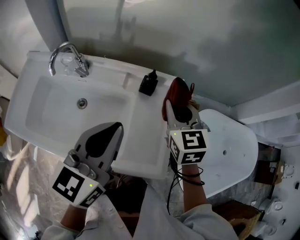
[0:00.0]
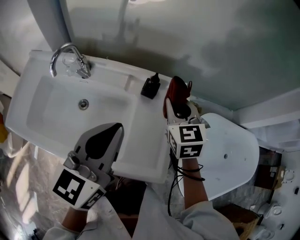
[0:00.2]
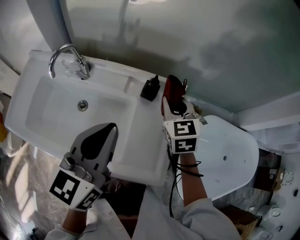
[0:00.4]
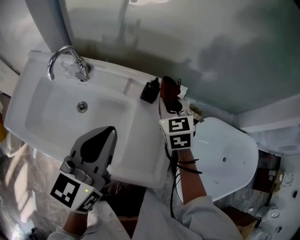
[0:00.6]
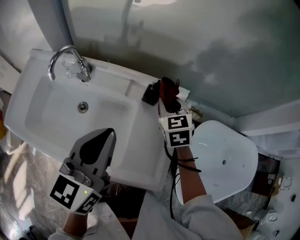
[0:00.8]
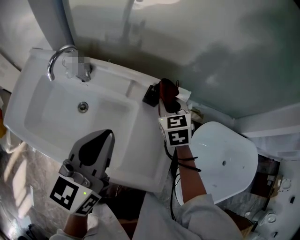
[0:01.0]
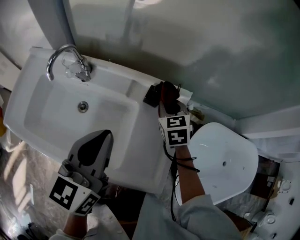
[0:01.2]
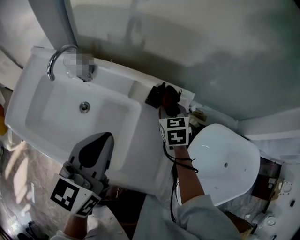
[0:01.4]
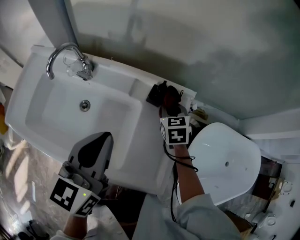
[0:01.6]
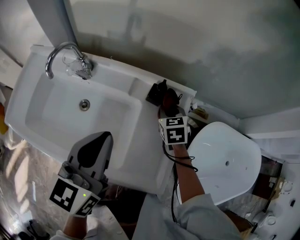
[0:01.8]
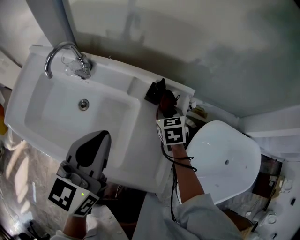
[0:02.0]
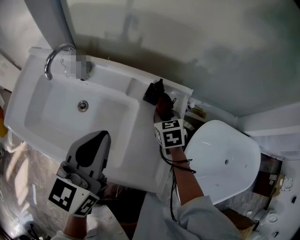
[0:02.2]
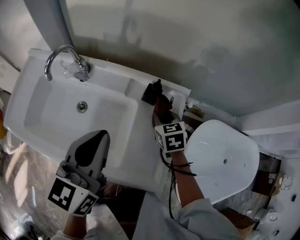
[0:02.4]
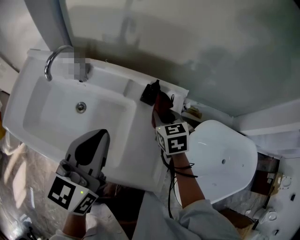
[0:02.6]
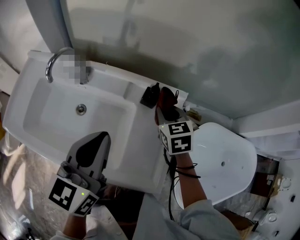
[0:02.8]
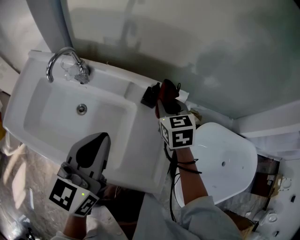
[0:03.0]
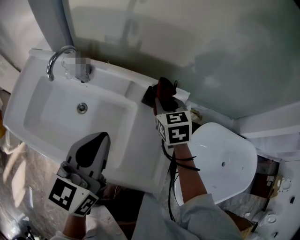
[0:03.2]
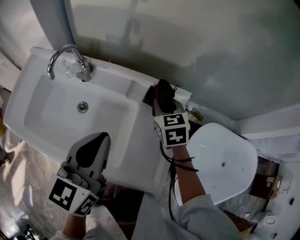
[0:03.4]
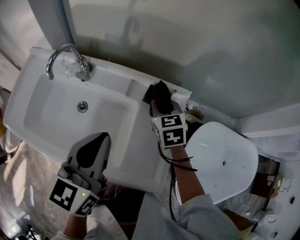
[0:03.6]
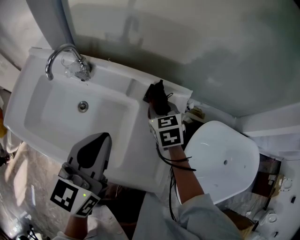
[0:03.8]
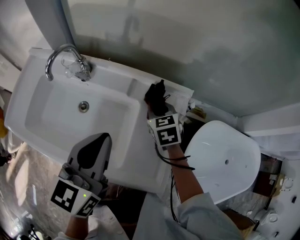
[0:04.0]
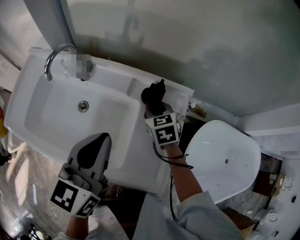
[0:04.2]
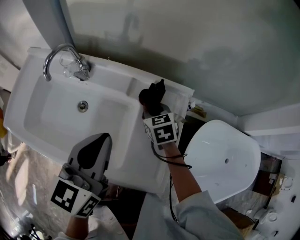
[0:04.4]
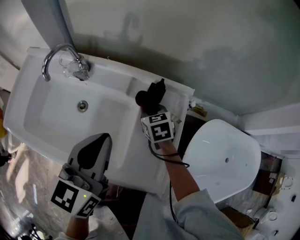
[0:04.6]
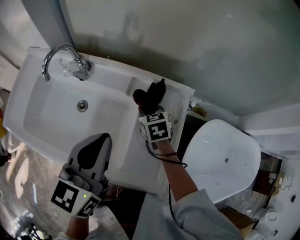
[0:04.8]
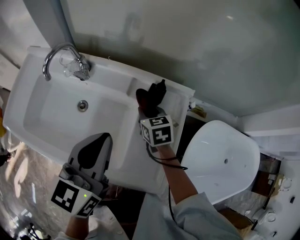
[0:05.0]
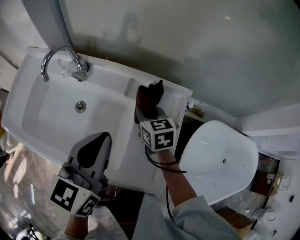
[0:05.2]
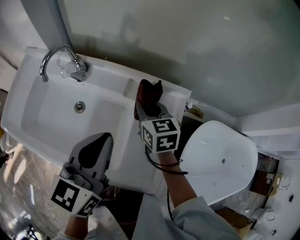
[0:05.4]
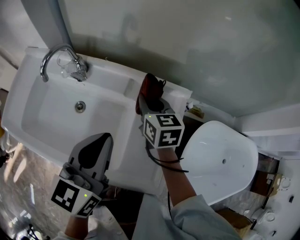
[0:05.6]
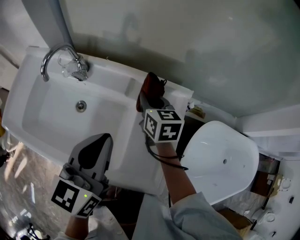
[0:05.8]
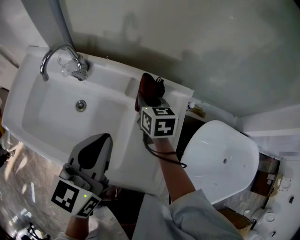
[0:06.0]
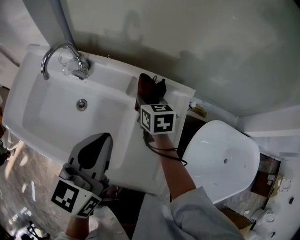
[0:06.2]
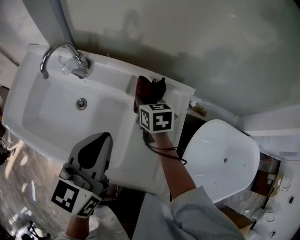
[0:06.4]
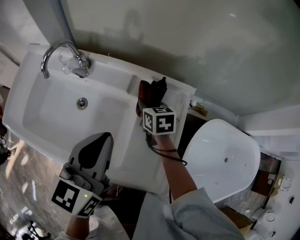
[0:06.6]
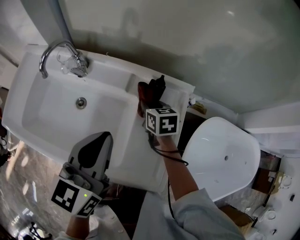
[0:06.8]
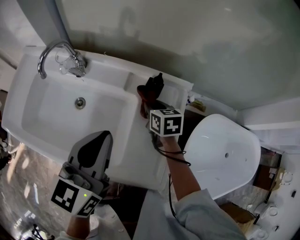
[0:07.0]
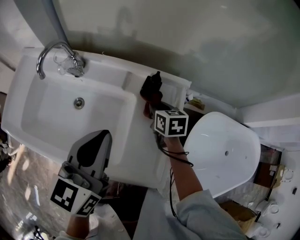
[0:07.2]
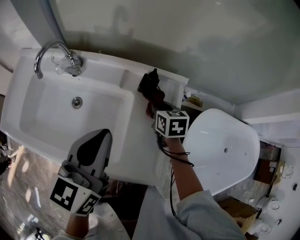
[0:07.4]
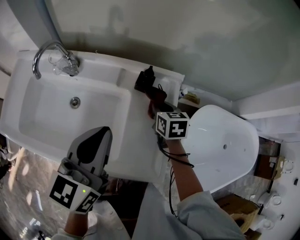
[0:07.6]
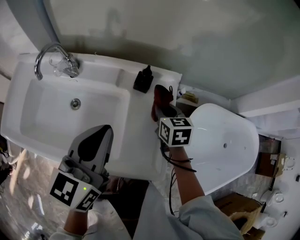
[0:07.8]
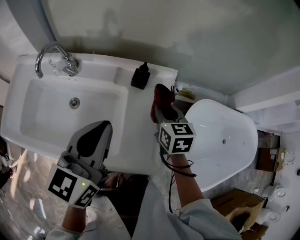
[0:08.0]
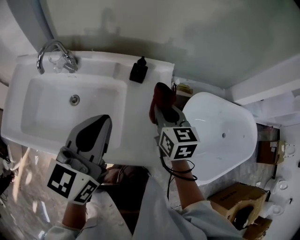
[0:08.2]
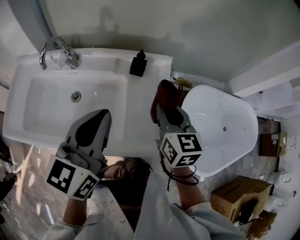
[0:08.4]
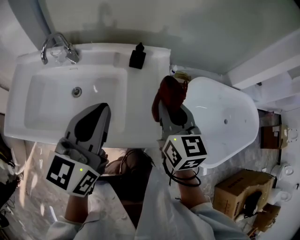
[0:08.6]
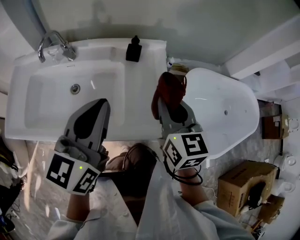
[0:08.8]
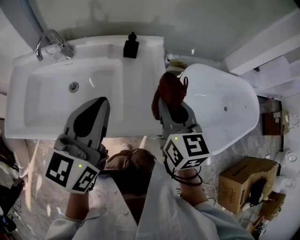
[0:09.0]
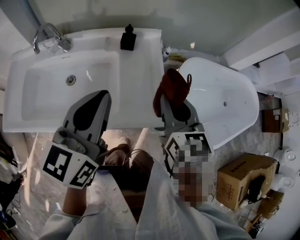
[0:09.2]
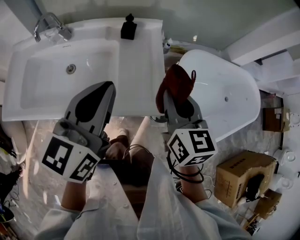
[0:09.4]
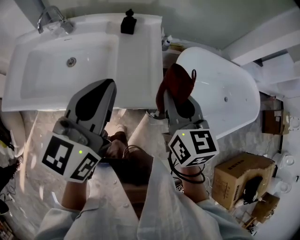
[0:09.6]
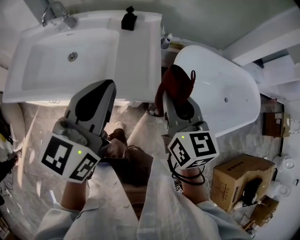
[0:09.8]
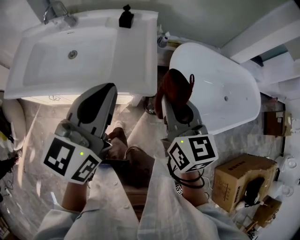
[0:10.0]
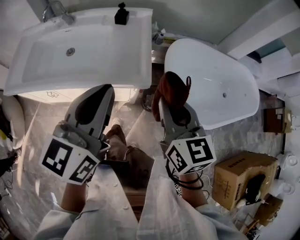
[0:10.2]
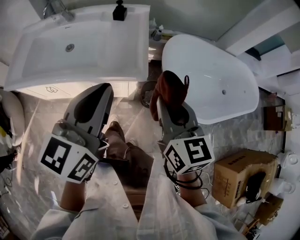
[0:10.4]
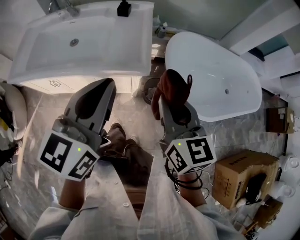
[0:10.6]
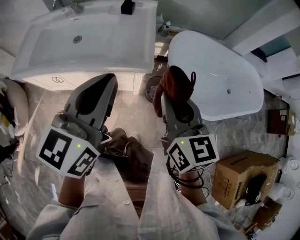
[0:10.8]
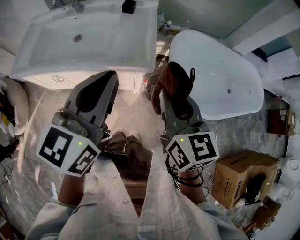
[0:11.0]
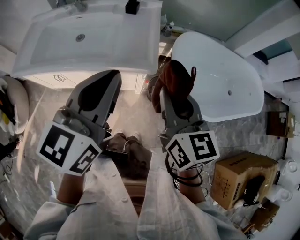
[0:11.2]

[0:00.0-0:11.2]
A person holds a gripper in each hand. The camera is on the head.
0:00.0 to 0:01.6: The left gripper moves approximately 5 cm; the right gripper travels downward and forward by roughly 20 cm.
0:01.6 to 0:03.2: The right gripper is displaced upward by some 10 cm.
0:03.2 to 0:04.8: The right gripper is displaced downward and to the left by approximately 15 cm.
0:04.8 to 0:06.4: The right gripper reaches about 10 cm upward, then returns.
0:06.4 to 0:08.0: The left gripper moves roughly 5 cm, while the right gripper shifts some 20 cm to the right, backward and upward.
0:08.0 to 0:09.6: The left gripper shifts approximately 20 cm backward and to the right, while the right gripper travels backward and upward by some 30 cm.
0:09.6 to 0:11.2: The left gripper moves backward and to the right, roughly 20 cm. The right gripper goes about 15 cm backward.

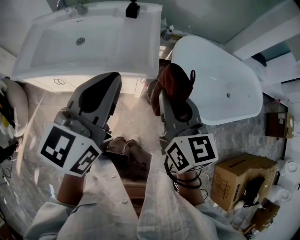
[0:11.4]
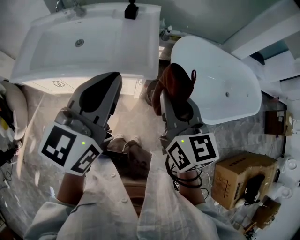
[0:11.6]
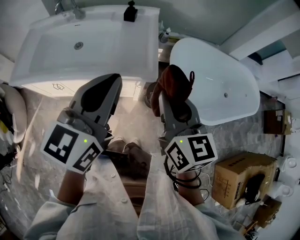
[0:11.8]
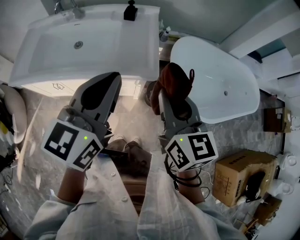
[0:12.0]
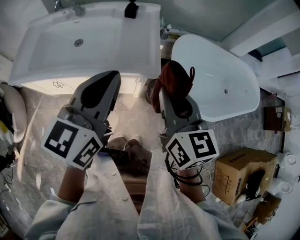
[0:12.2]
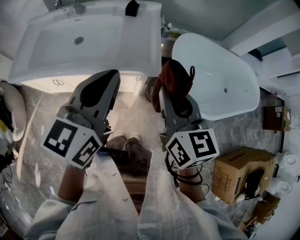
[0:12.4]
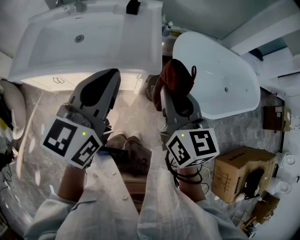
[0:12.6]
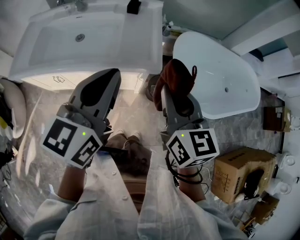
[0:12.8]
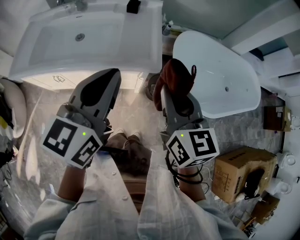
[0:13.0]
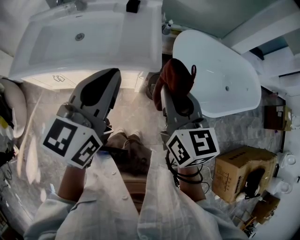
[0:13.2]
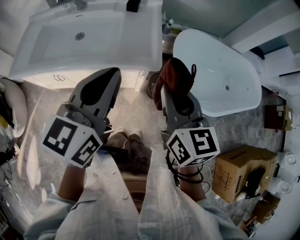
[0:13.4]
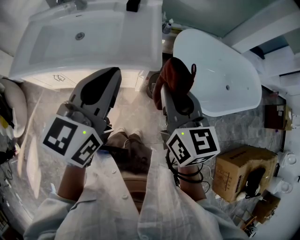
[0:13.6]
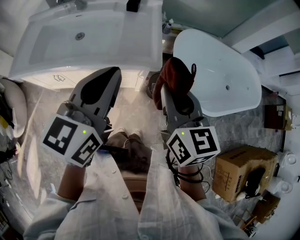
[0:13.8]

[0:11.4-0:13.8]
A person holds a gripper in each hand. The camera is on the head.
0:11.4 to 0:12.6: There are only small adjustments of the grippers.
0:12.6 to 0:13.8: Both grippers stay put.

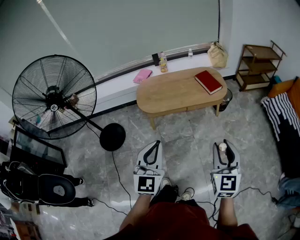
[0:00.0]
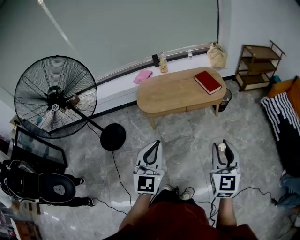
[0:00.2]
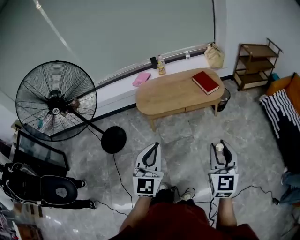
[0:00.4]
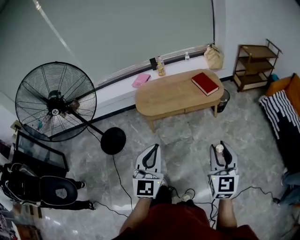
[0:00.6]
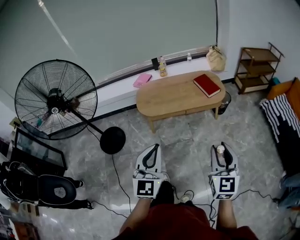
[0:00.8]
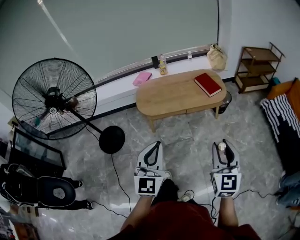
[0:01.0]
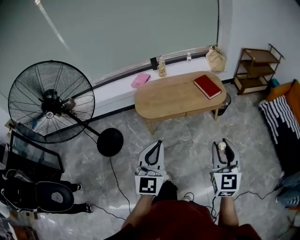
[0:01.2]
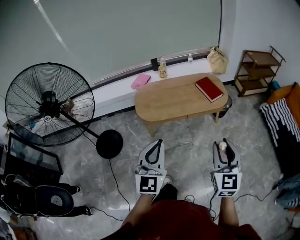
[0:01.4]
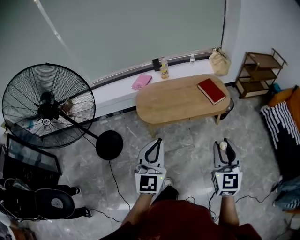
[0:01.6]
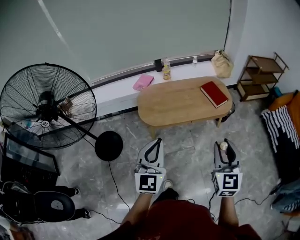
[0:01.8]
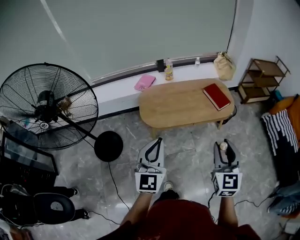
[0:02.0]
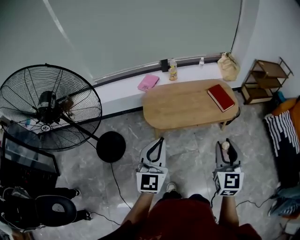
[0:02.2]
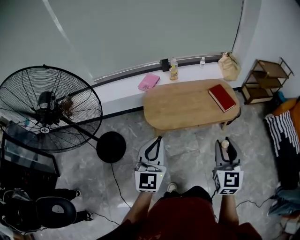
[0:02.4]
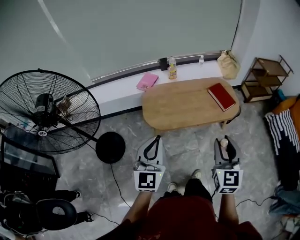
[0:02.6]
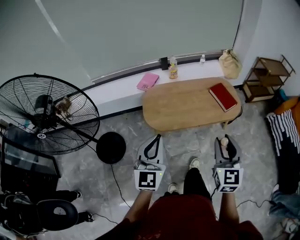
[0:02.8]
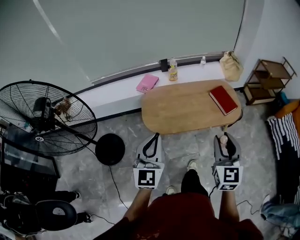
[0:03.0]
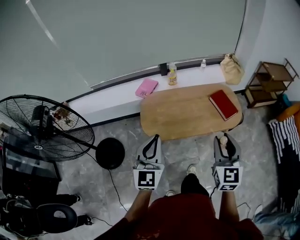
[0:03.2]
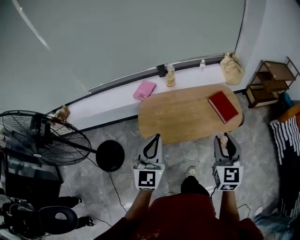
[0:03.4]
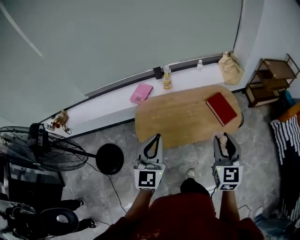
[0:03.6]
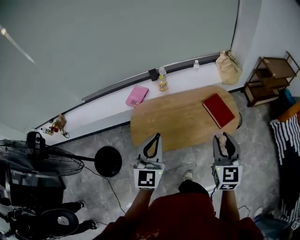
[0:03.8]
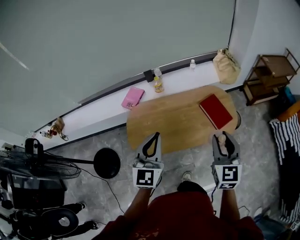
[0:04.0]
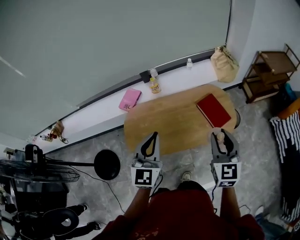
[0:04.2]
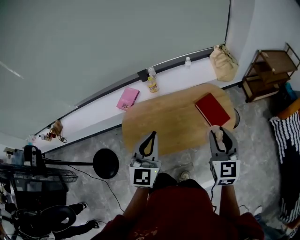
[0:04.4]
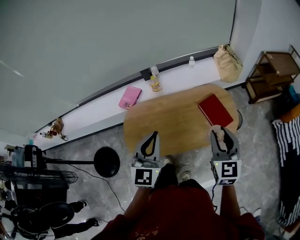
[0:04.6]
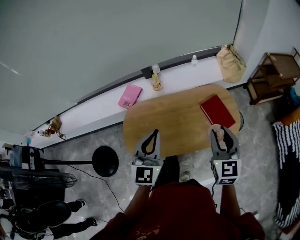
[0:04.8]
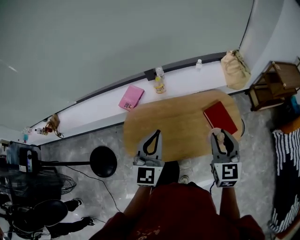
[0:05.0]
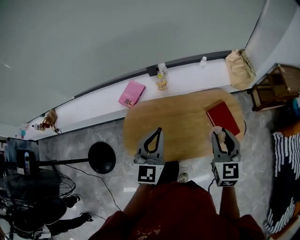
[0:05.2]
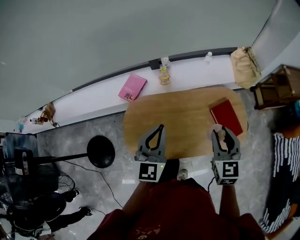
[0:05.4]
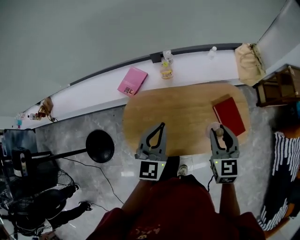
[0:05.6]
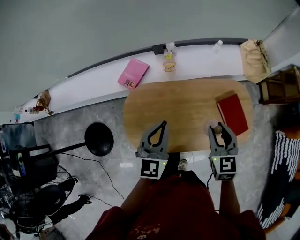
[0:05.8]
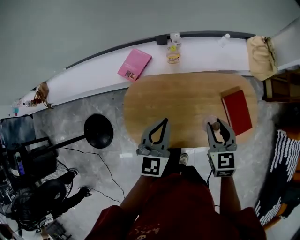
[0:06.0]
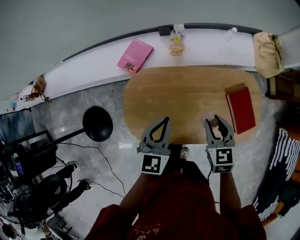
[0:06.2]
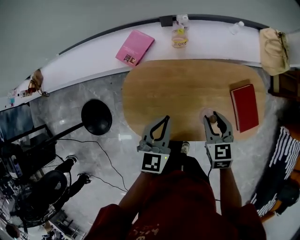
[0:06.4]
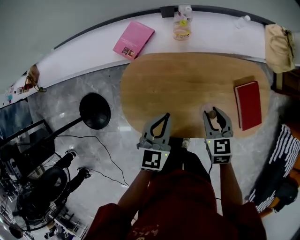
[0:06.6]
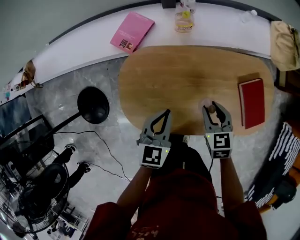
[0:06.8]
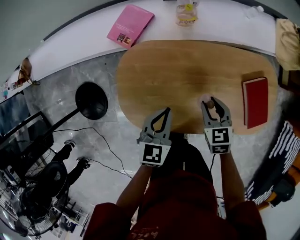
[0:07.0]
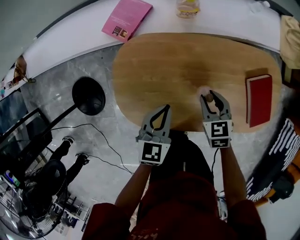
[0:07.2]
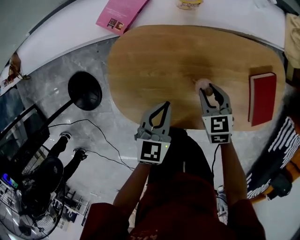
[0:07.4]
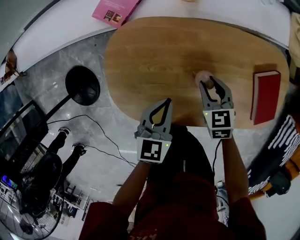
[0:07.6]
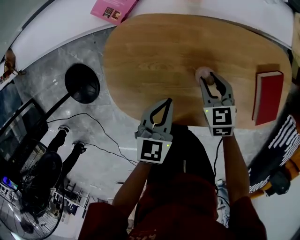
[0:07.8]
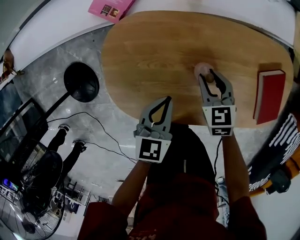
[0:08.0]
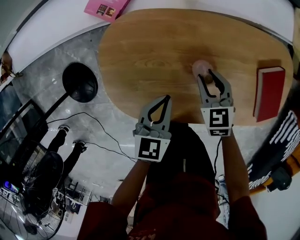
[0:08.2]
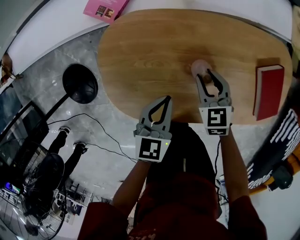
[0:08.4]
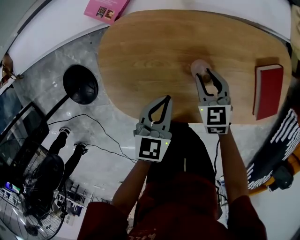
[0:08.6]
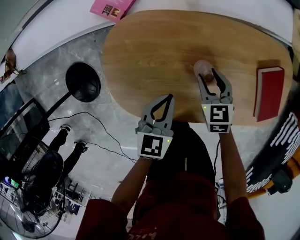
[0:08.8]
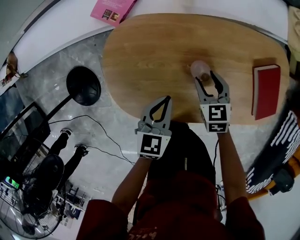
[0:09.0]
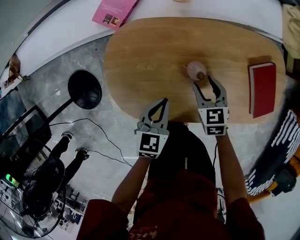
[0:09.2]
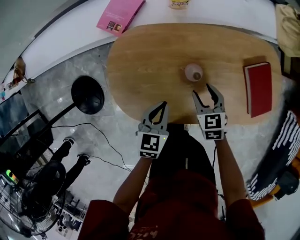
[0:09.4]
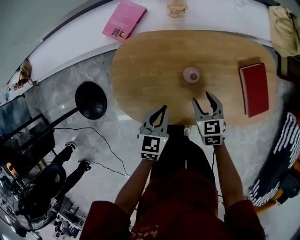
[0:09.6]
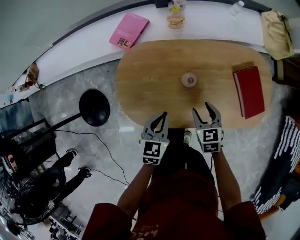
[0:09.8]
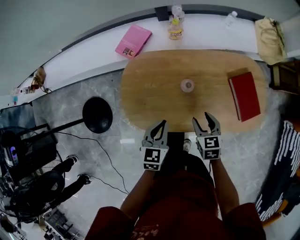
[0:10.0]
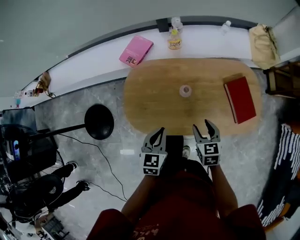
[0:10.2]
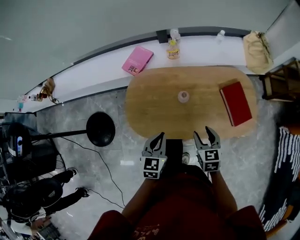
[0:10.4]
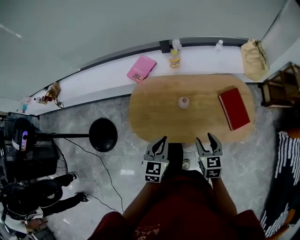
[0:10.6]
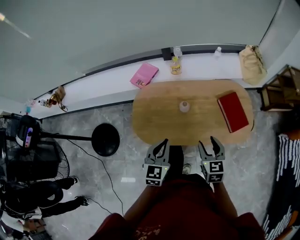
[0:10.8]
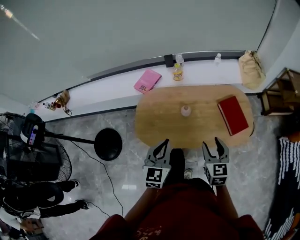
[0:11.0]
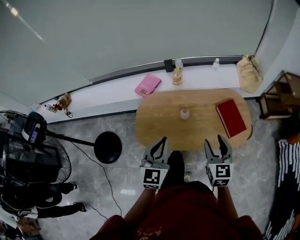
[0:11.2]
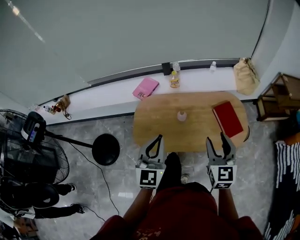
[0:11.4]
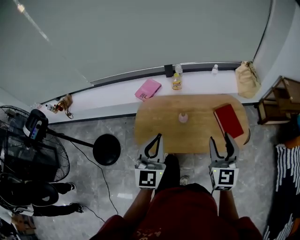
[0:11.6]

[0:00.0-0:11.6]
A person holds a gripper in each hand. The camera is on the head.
0:00.0 to 0:01.4: The left gripper goes roughly 10 cm forward, while the right gripper shifts some 10 cm forward and to the left.
0:01.4 to 0:02.8: The two grippers go about 25 cm forward and to the left.
0:02.8 to 0:04.4: The two grippers go some 40 cm forward and to the right.
0:04.4 to 0:05.8: The right gripper goes some 25 cm forward, to the left and downward, and changes its angle by about 20 degrees. The left gripper travels forward, downward and to the left by approximately 25 cm.
0:05.8 to 0:07.2: Both grippers travel together downward, approximately 30 cm. The left gripper turns by about 30 degrees. Meanwhile the right gripper turns by about 30 degrees.
0:07.2 to 0:08.8: The grippers both shift downward by roughly 5 cm.
0:08.8 to 0:10.2: Both grippers travel together backward and upward, approximately 25 cm.
0:10.2 to 0:11.6: Both grippers move upward, roughly 30 cm. The left gripper tilts its fingers roughly 40 degrees upward. The right gripper angles its fingers upward, by about 40 degrees.
